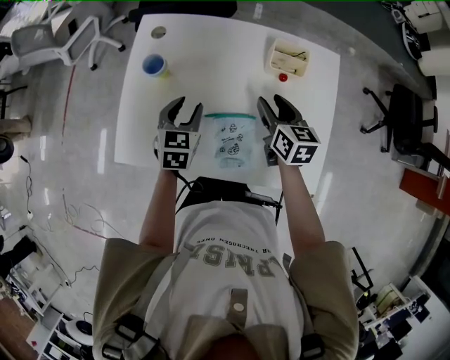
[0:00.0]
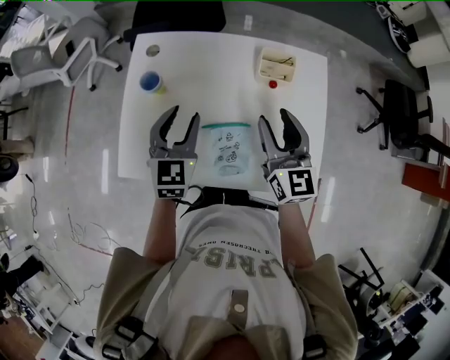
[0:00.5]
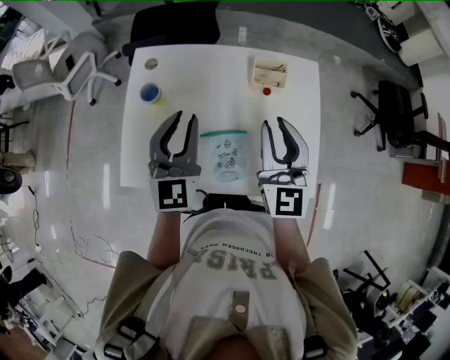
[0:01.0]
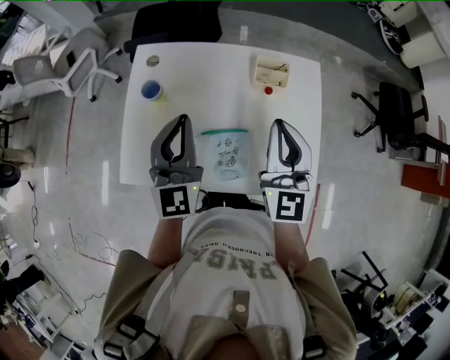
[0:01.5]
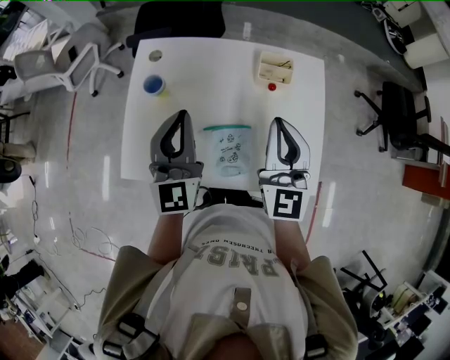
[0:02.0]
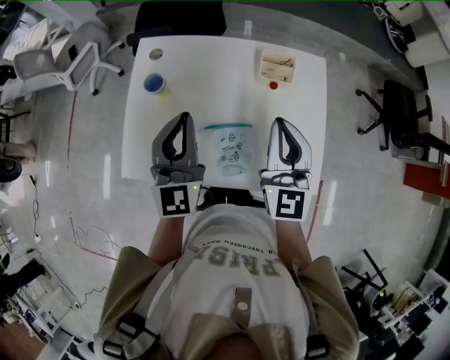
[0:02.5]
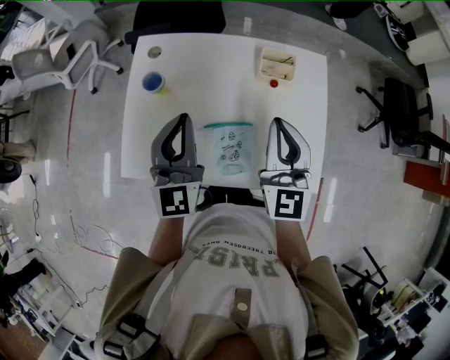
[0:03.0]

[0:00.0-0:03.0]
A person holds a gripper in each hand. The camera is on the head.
0:00.0 to 0:01.5: Both grippers move upward, some 20 cm. The right gripper points its fingers approximately 30 degrees further upward, and closes its fingers; the left gripper angles its fingers upward, by roughly 40 degrees, and closes.
0:01.5 to 0:03.0: There are only small adjustments of the grippers.

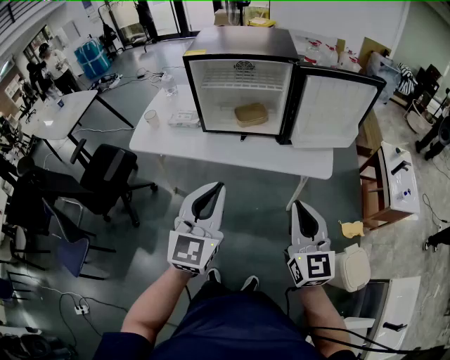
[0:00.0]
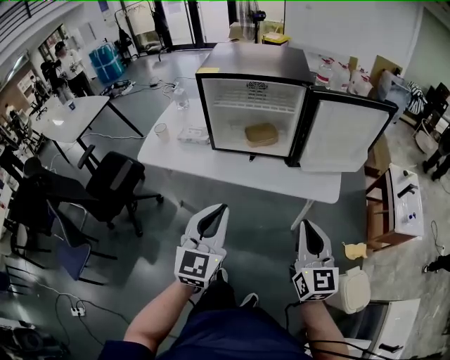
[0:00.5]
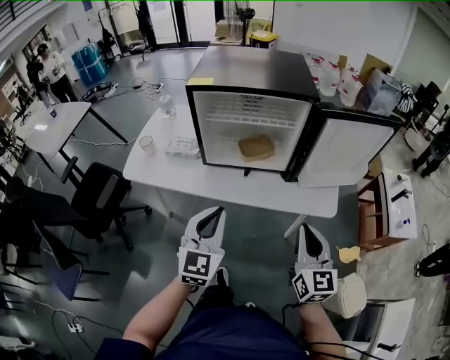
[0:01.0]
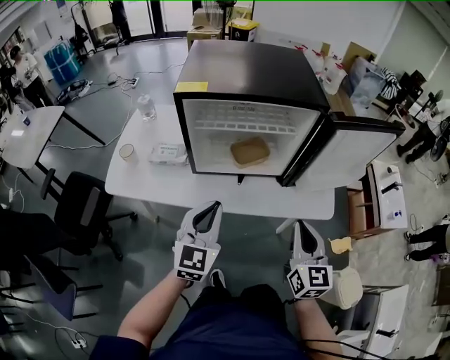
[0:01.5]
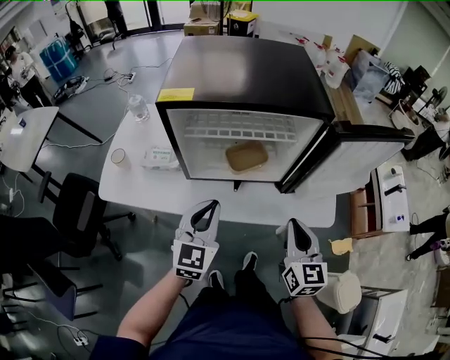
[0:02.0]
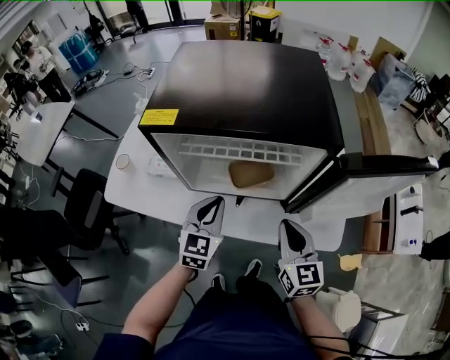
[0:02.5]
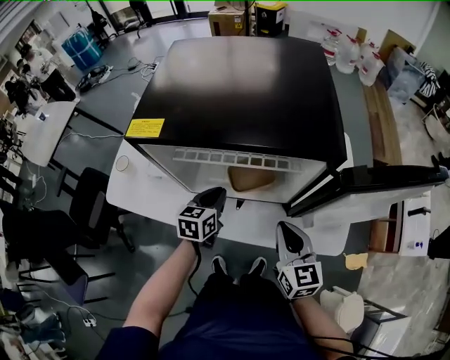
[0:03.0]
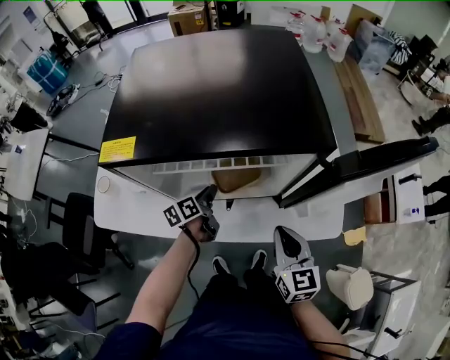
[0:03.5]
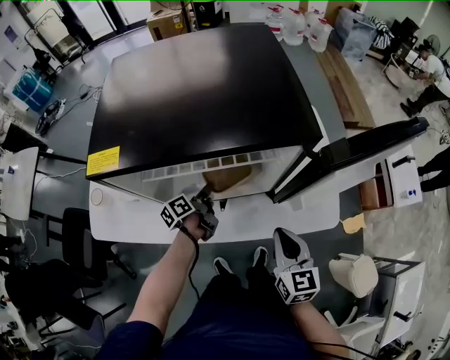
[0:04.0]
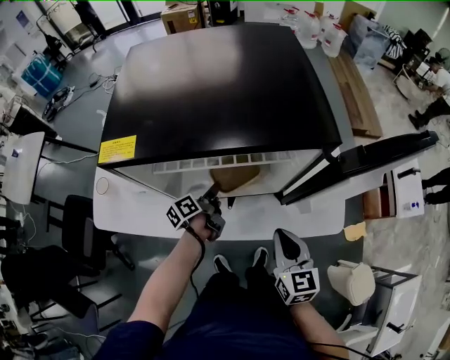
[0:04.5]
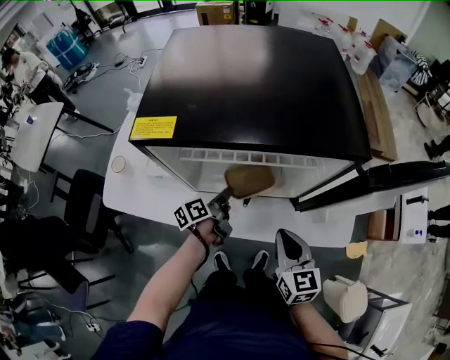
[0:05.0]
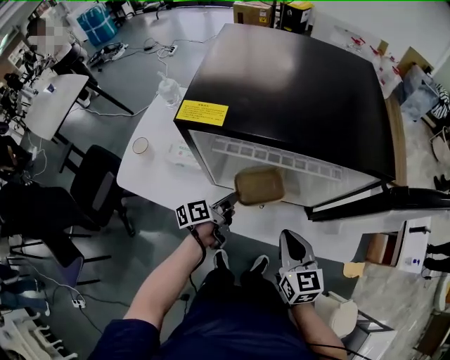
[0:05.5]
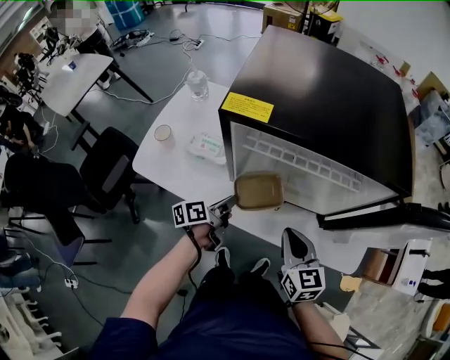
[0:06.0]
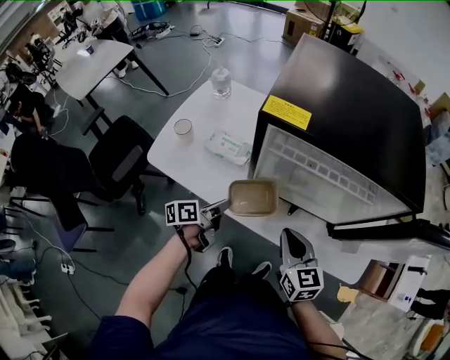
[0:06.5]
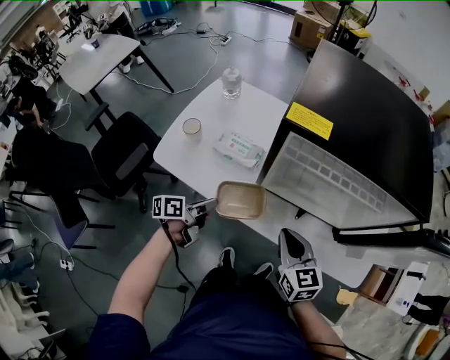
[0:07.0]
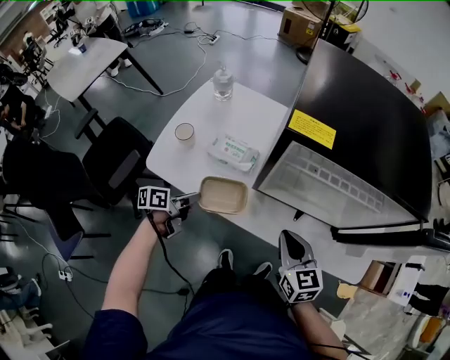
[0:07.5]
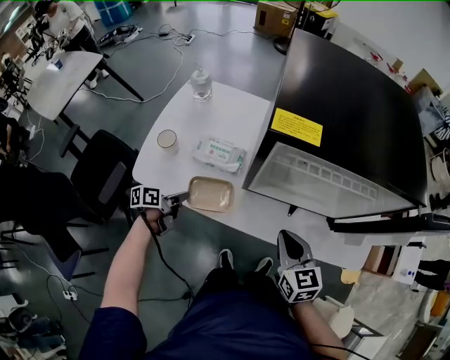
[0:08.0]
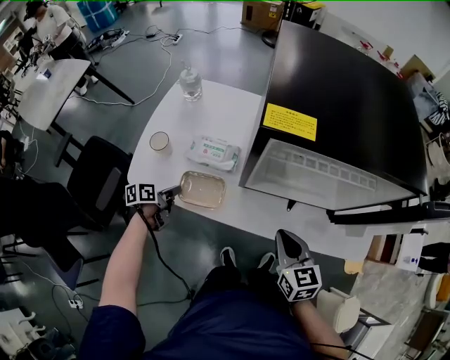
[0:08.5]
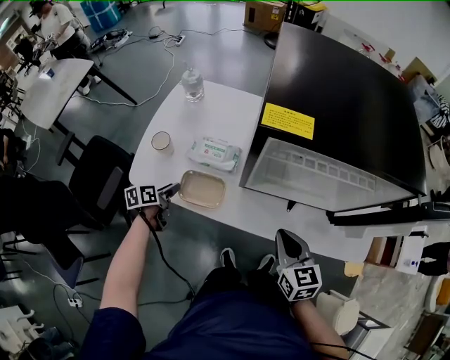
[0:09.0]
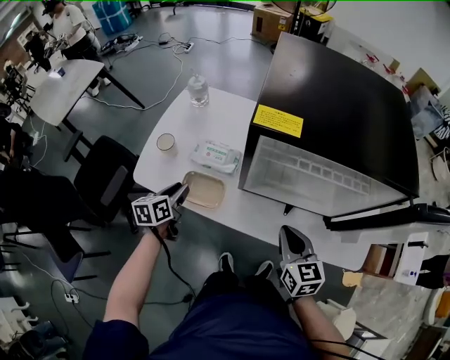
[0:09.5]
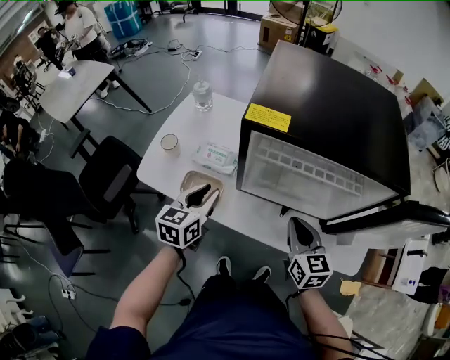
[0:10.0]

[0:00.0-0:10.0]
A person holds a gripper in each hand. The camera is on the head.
0:00.0 to 0:02.0: Both grippers travel together forward, some 25 cm.
0:02.0 to 0:04.0: The left gripper heads downward and forward, covering approximately 30 cm, rotates around the line of its fingers by roughly 80 degrees, counterclockwise from behind, and opens; the right gripper heads downward and forward, covering approximately 10 cm.
0:04.0 to 0:06.0: The right gripper is displaced to the left by about 15 cm, and changes its angle by about 30 degrees. Meanwhile the left gripper is displaced backward and to the left by approximately 15 cm.
0:06.0 to 0:08.0: The right gripper goes approximately 10 cm to the left, while the left gripper moves to the left, approximately 25 cm.
0:08.0 to 0:10.0: The right gripper is displaced to the right by roughly 5 cm, while the left gripper shifts roughly 25 cm upward and to the right, and rotates around the line of its fingers by roughly 40 degrees, clockwise from behind.

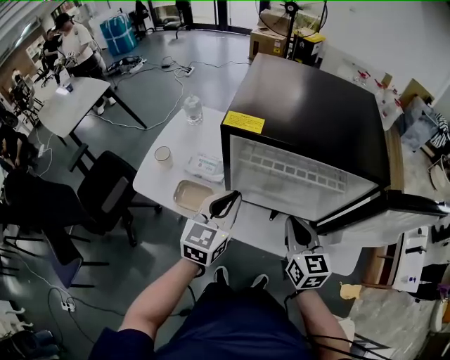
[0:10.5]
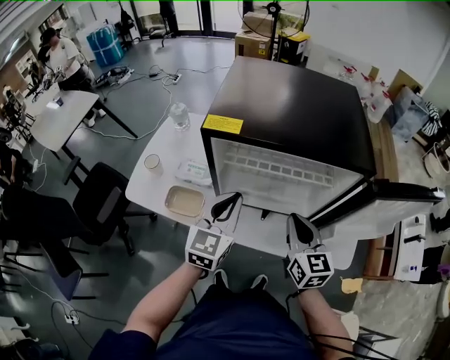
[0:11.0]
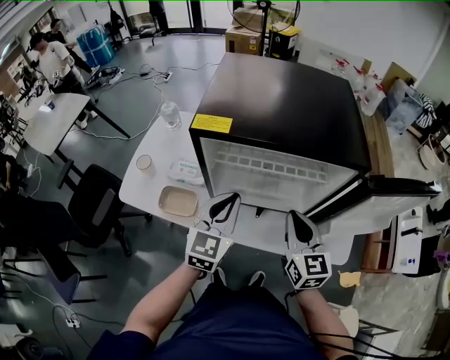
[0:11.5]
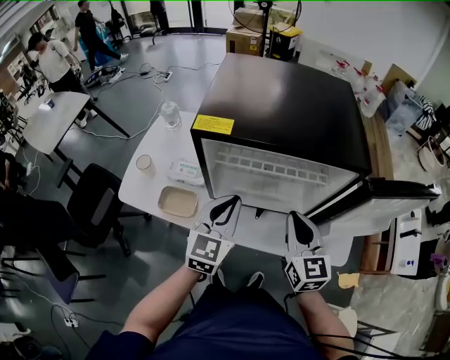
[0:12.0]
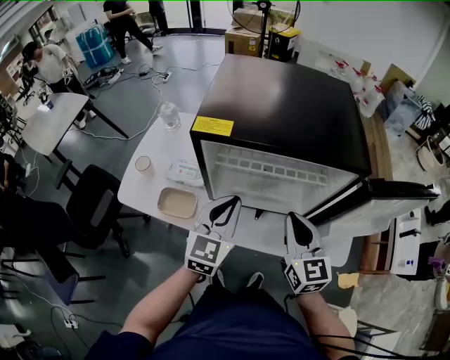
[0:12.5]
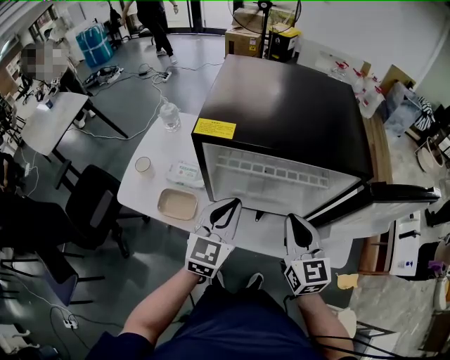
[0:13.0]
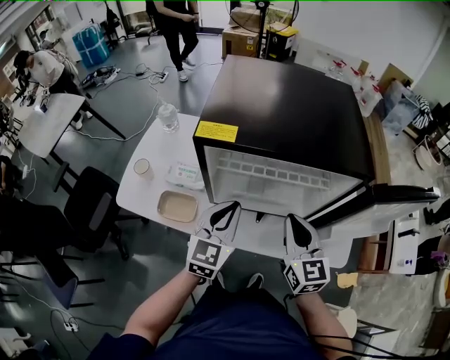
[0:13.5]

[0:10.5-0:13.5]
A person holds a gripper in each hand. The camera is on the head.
0:10.5 to 0:12.0: The left gripper is displaced to the right by approximately 5 cm; the right gripper ends up roughly 5 cm from where it was.
0:12.0 to 0:13.5: The grippers make only small movements.

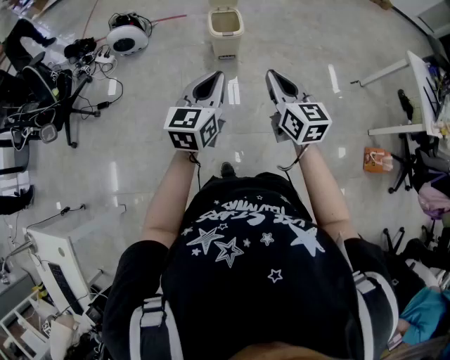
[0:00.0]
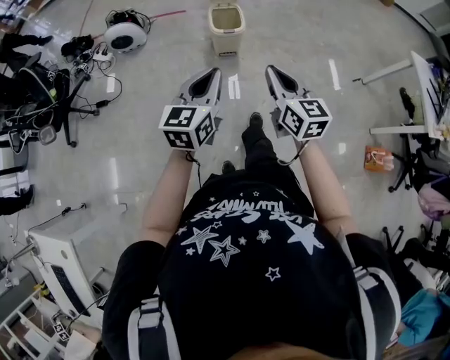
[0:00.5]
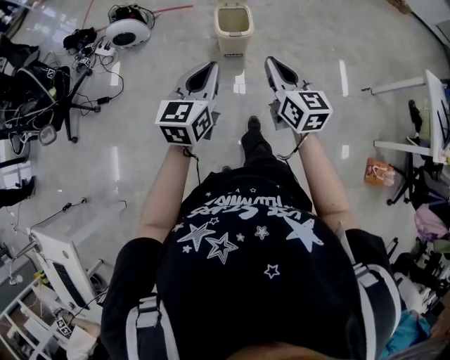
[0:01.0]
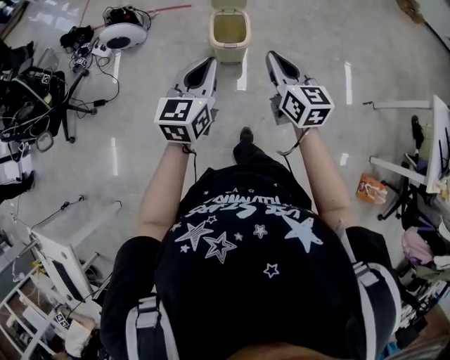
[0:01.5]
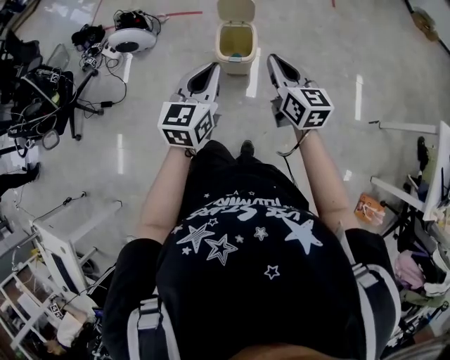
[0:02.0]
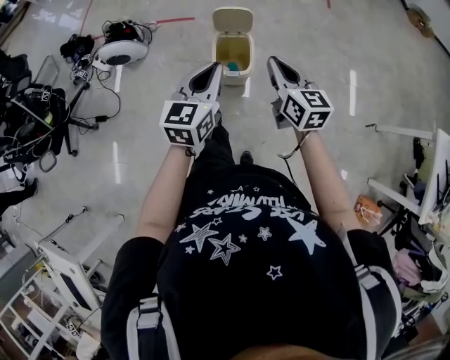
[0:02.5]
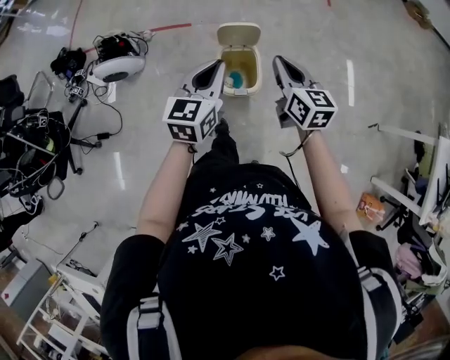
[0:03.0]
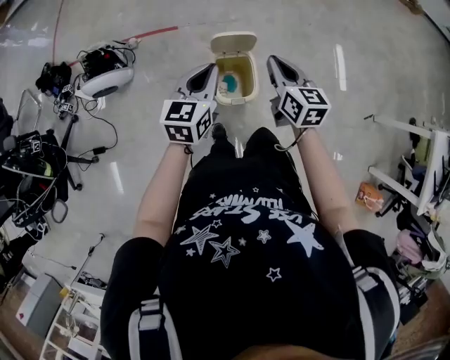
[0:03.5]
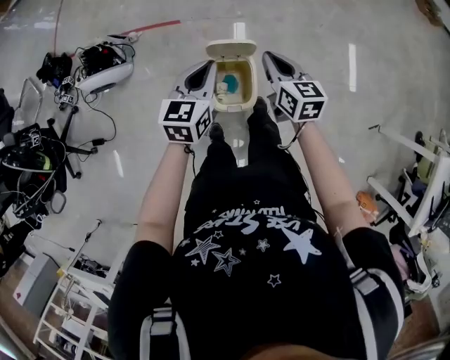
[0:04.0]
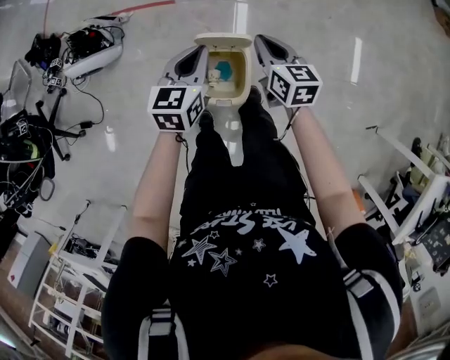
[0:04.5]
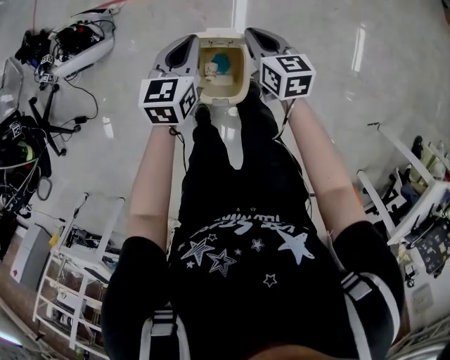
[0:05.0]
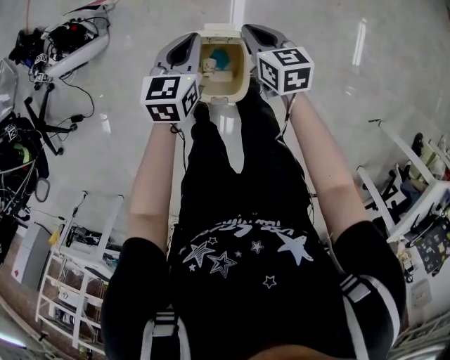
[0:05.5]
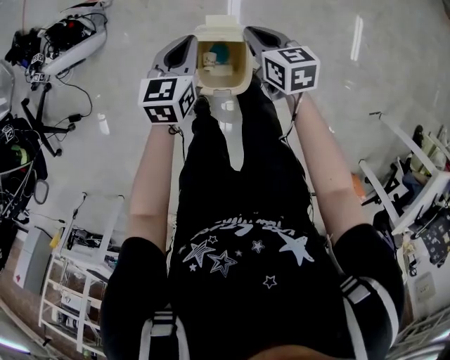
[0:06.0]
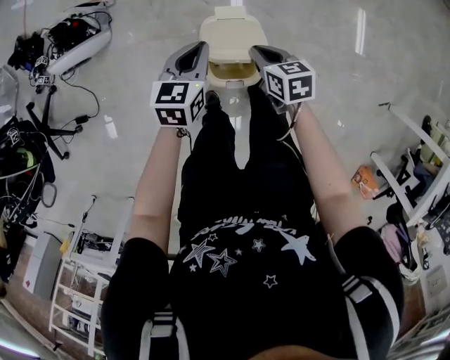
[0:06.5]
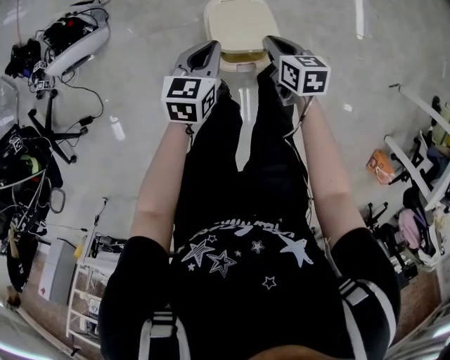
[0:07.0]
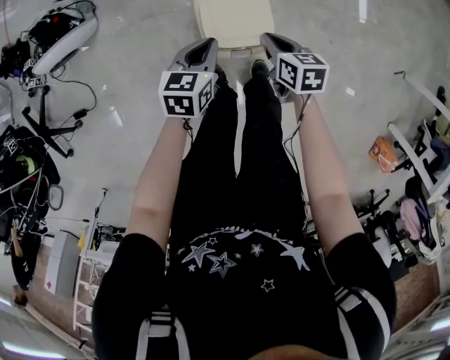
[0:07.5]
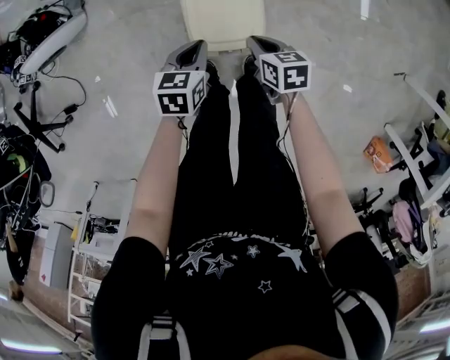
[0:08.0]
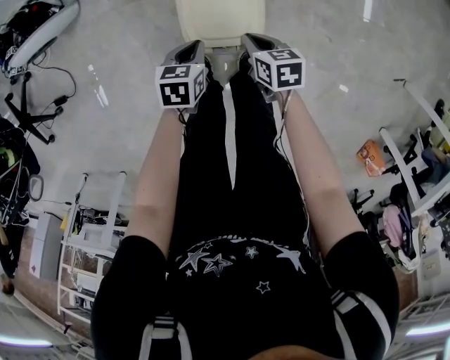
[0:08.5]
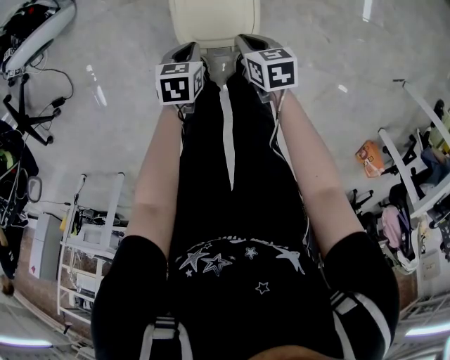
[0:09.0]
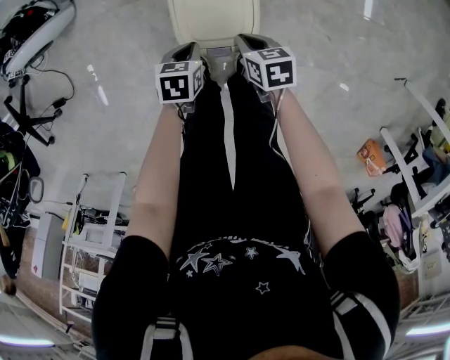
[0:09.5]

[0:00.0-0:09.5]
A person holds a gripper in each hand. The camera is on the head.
0:00.0 to 0:02.0: The two grippers go roughly 35 cm forward.
0:02.0 to 0:04.0: The two grippers go approximately 40 cm forward.
0:04.0 to 0:05.5: The grippers both shift downward and forward by approximately 20 cm.
0:05.5 to 0:07.5: The grippers both shift backward and downward by about 20 cm. The right gripper turns by about 20 degrees.
0:07.5 to 0:09.5: The left gripper moves downward, approximately 15 cm, and turns by approximately 20 degrees, while the right gripper is displaced downward by roughly 10 cm.
